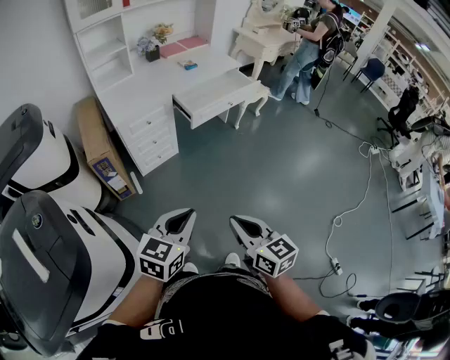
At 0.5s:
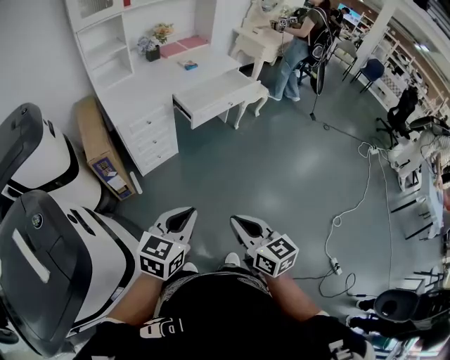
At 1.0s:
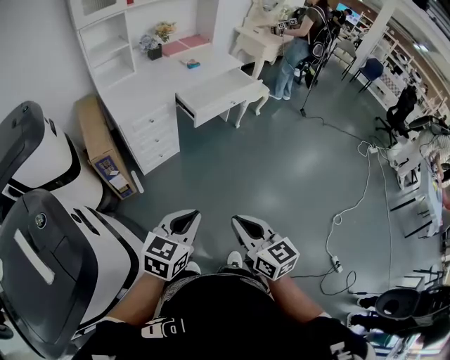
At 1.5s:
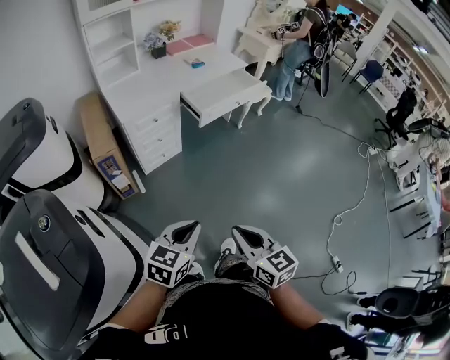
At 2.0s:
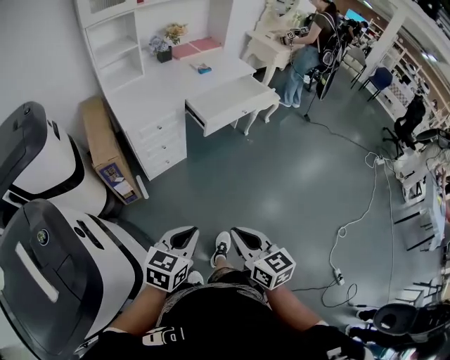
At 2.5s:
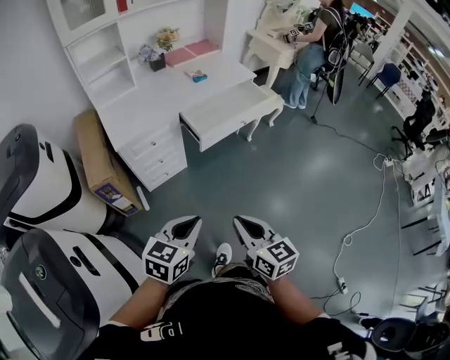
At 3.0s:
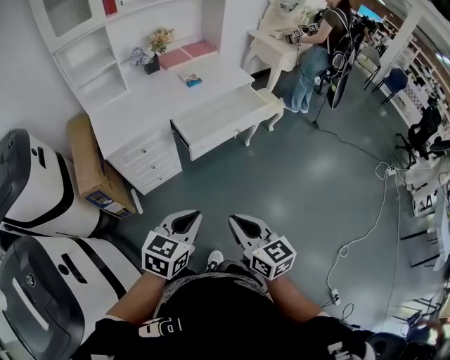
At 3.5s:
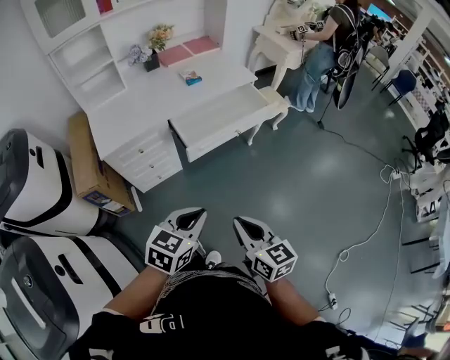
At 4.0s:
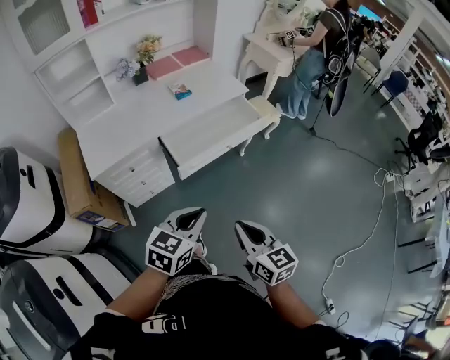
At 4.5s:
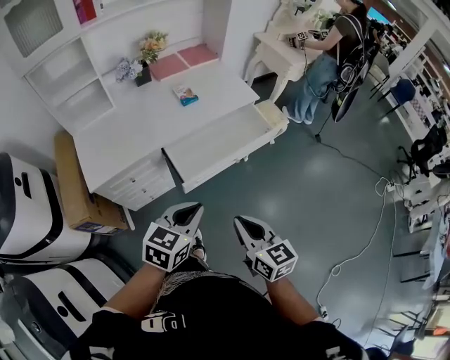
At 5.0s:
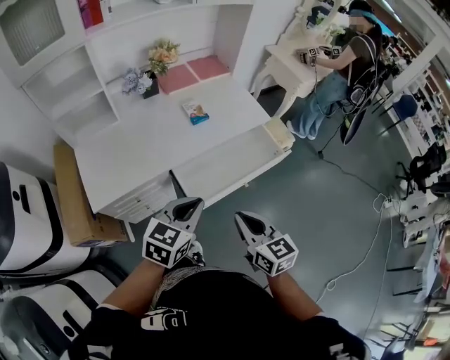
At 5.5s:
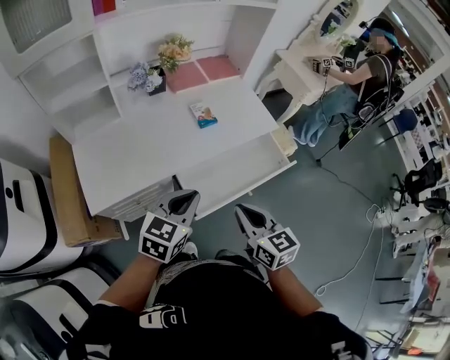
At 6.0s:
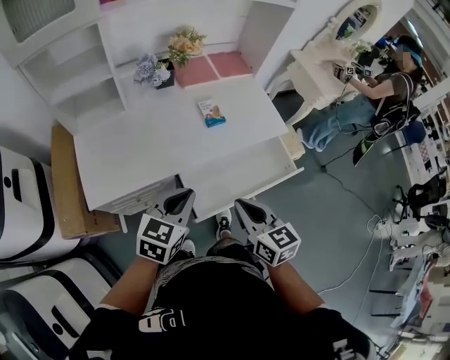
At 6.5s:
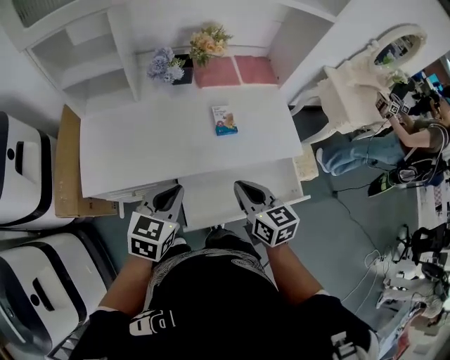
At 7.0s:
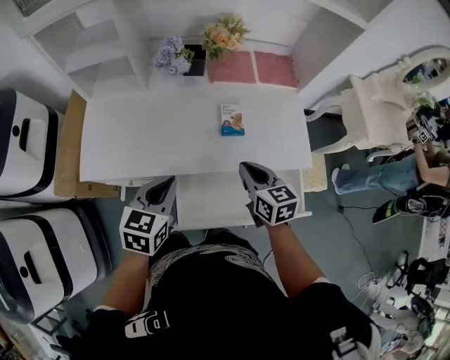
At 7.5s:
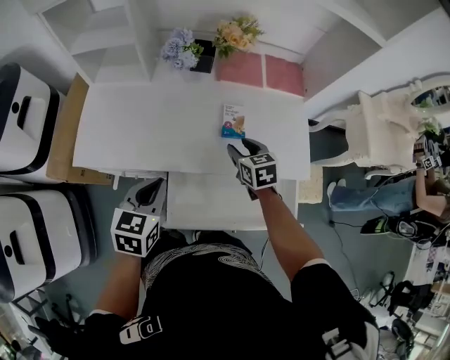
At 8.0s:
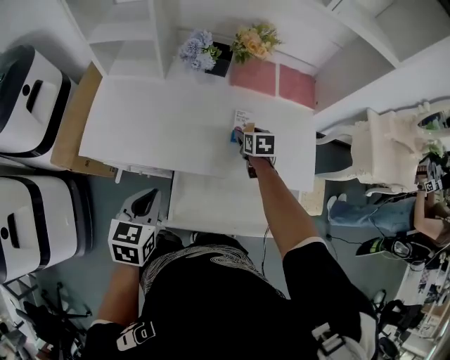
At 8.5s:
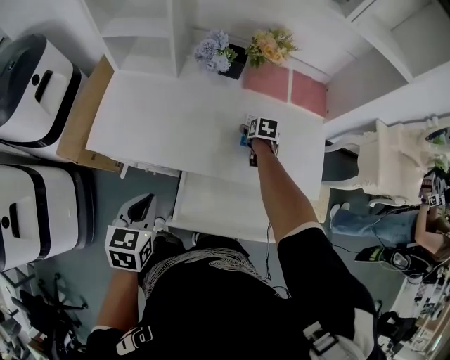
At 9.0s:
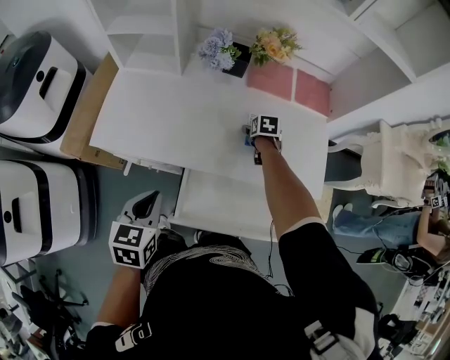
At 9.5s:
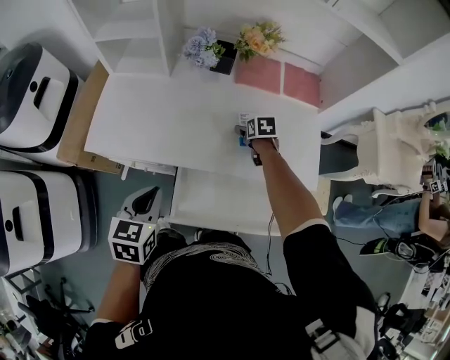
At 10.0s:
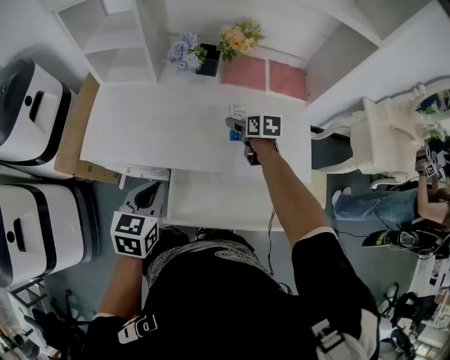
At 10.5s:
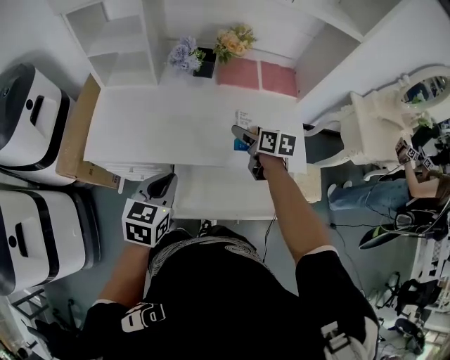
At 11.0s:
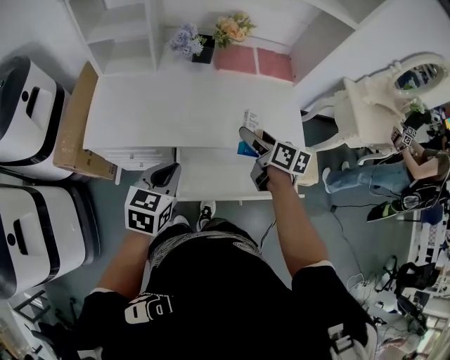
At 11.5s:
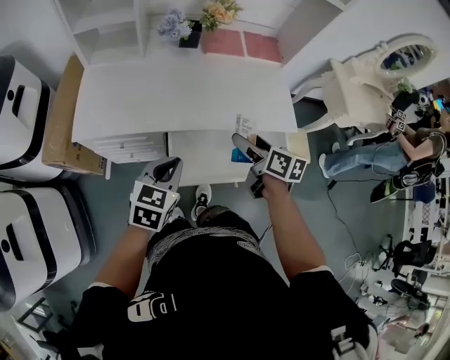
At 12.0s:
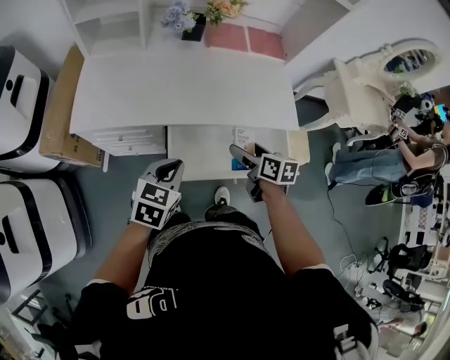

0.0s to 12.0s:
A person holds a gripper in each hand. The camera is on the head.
0.0s to 2.0s: The right gripper goes roughly 5 cm to the left, while the left gripper shifts roughly 10 cm downward and to the left.
2.0s to 4.0s: The two grippers go roughly 40 cm forward and to the right.
4.0s to 6.0s: The left gripper is displaced forward and to the left by some 35 cm, while the right gripper is displaced forward by about 35 cm.
6.0s to 8.0s: The right gripper ends up about 50 cm from where it was, turns by about 30 degrees, and opens up. The left gripper shifts approximately 5 cm downward, and changes its angle by approximately 50 degrees.
10.0s to 12.0s: The left gripper is displaced backward by some 10 cm, and turns by about 20 degrees. The right gripper shifts roughly 30 cm backward.

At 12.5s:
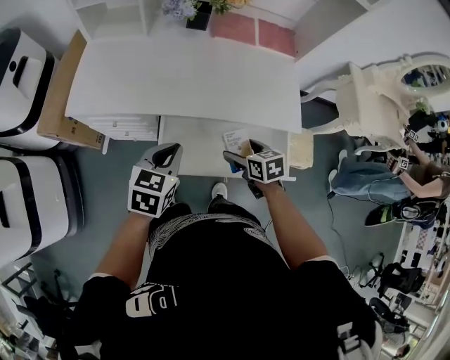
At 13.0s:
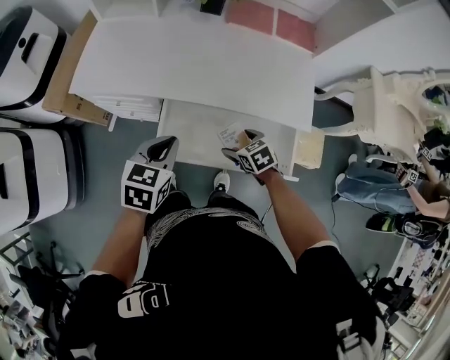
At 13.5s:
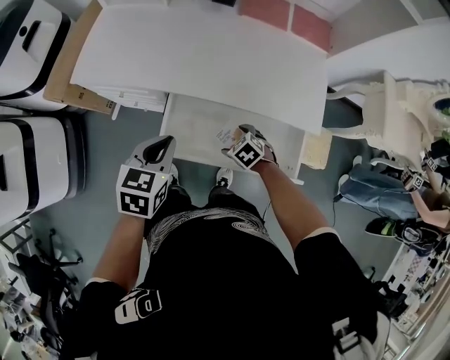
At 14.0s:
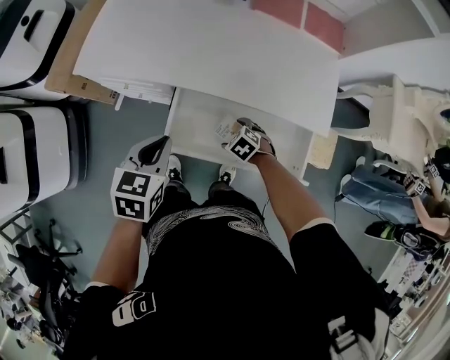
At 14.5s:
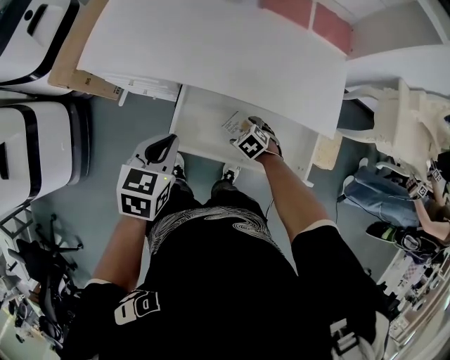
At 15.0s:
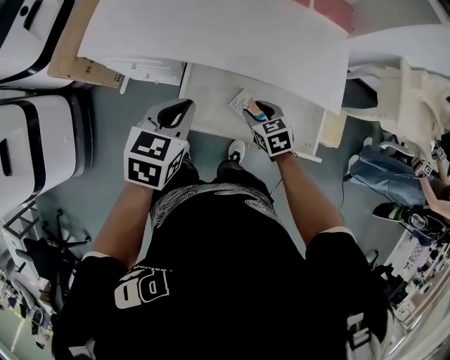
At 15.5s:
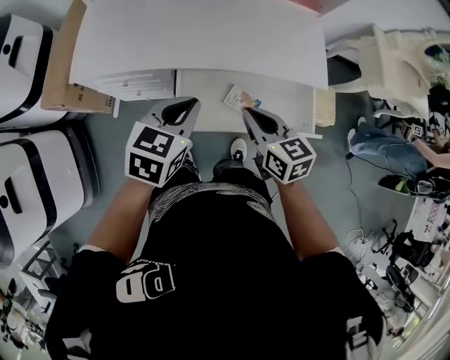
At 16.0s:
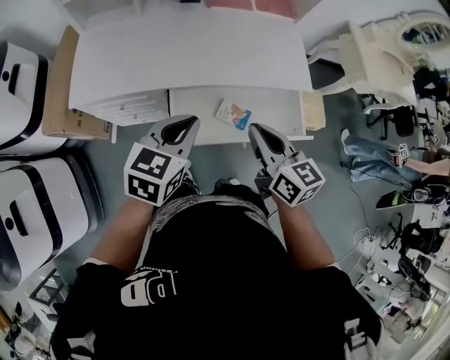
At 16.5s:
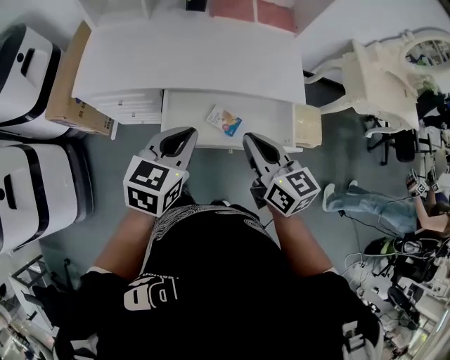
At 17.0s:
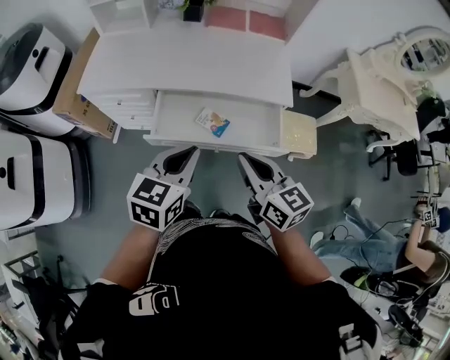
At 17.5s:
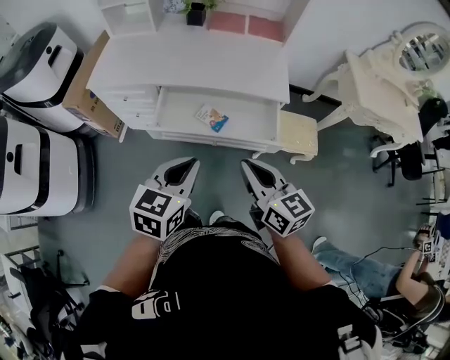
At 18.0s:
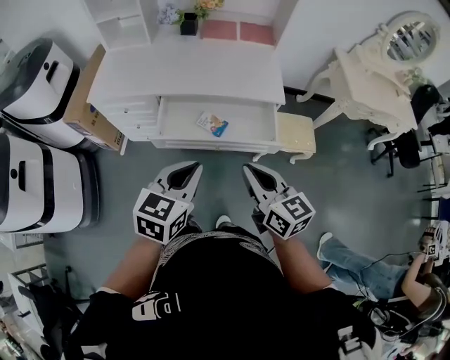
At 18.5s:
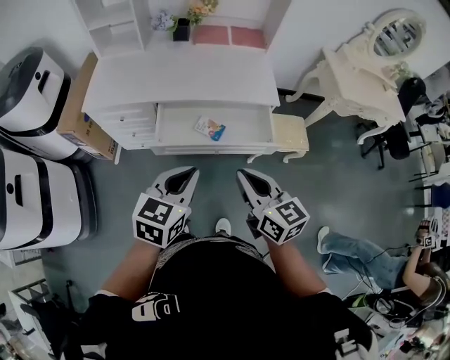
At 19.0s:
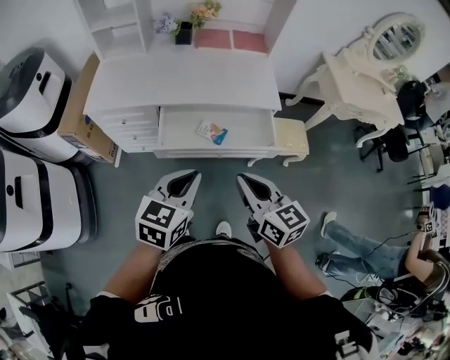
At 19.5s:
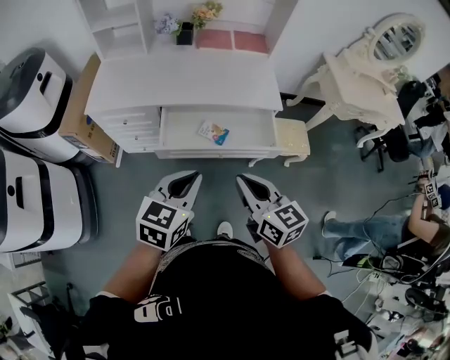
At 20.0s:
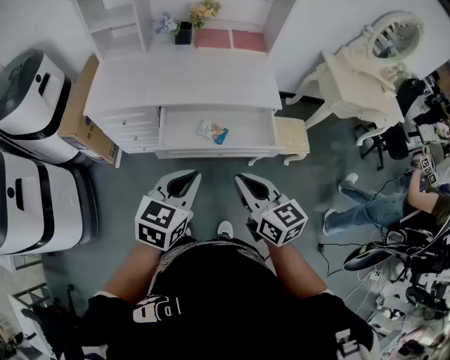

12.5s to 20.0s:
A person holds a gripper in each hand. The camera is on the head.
12.5s to 14.5s: The right gripper heads downward, covering roughly 20 cm, and rotates around the line of its fingers by about 40 degrees, counterclockwise from behind; the left gripper moves roughly 5 cm.
14.5s to 16.5s: The right gripper is displaced upward by about 35 cm, points its fingers about 60 degrees further upward, and closes; the left gripper moves upward, approximately 10 cm, and changes its angle by some 20 degrees.
16.5s to 18.0s: The two grippers go roughly 20 cm backward and to the right.
18.0s to 20.0s: Both grippers travel together to the left, roughly 5 cm.

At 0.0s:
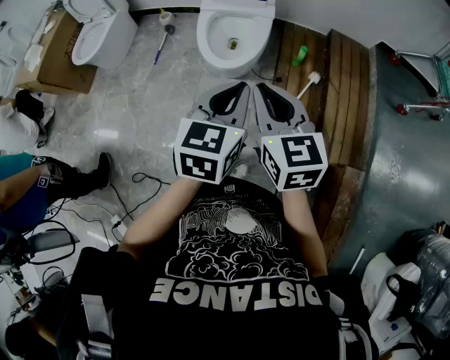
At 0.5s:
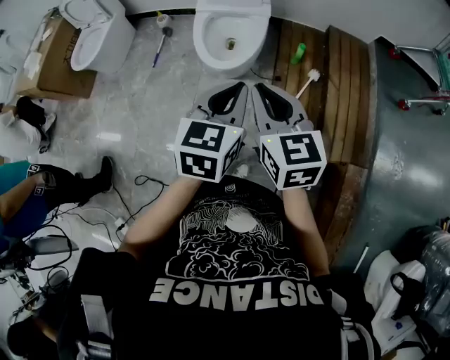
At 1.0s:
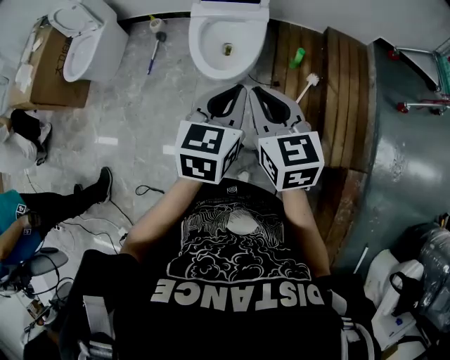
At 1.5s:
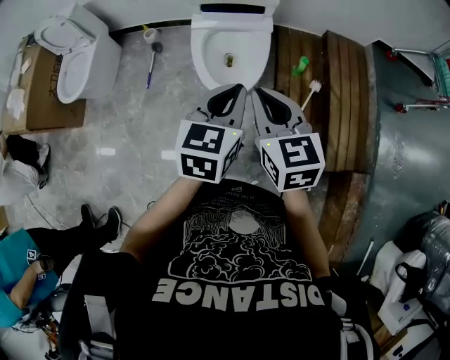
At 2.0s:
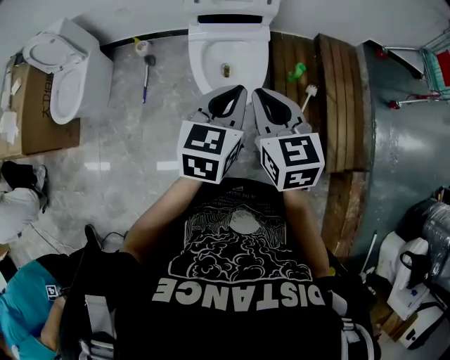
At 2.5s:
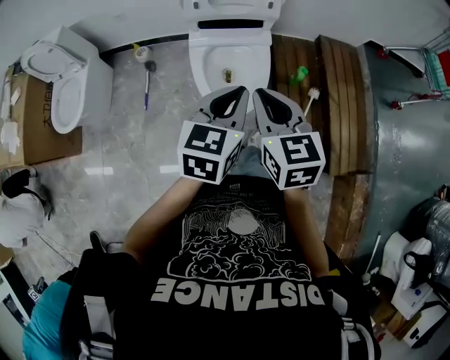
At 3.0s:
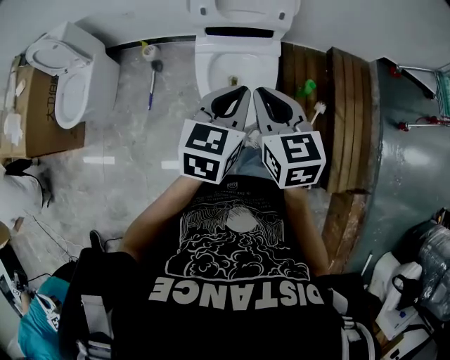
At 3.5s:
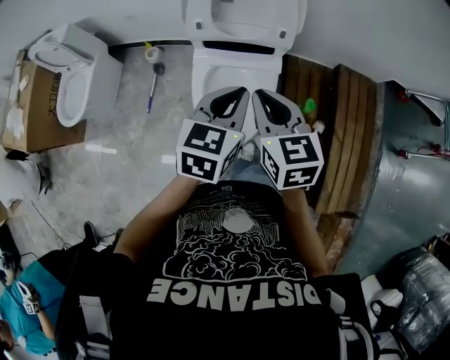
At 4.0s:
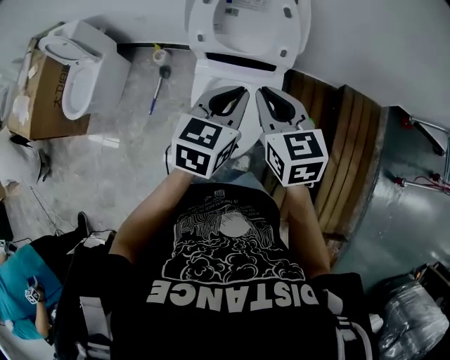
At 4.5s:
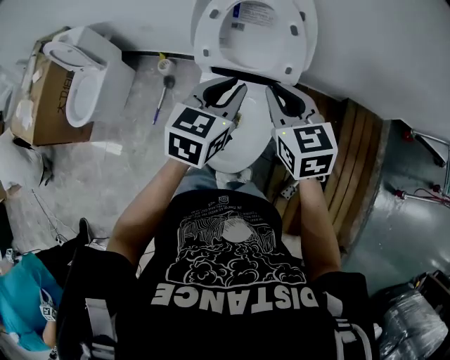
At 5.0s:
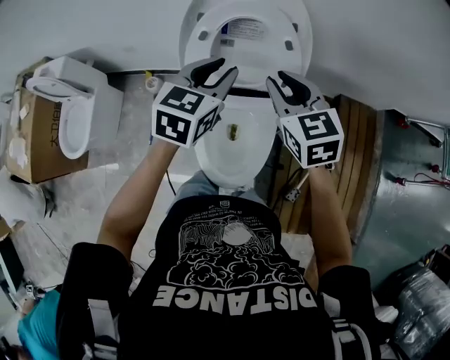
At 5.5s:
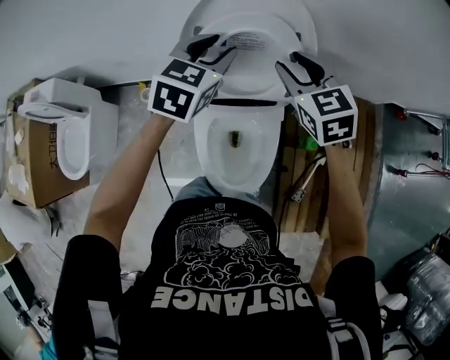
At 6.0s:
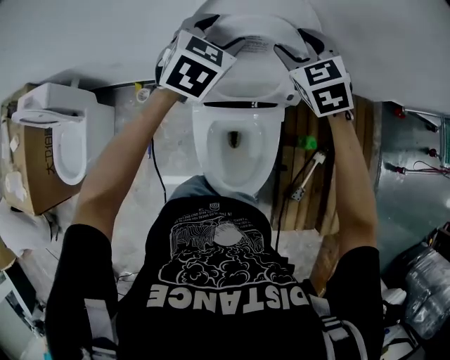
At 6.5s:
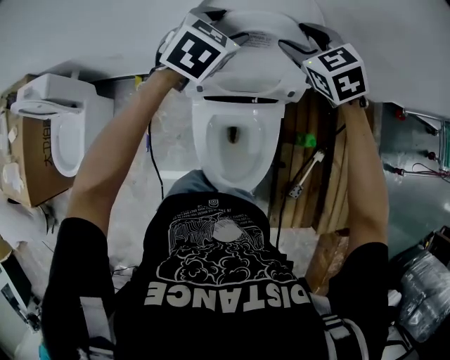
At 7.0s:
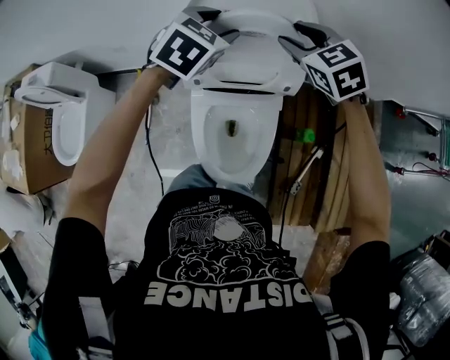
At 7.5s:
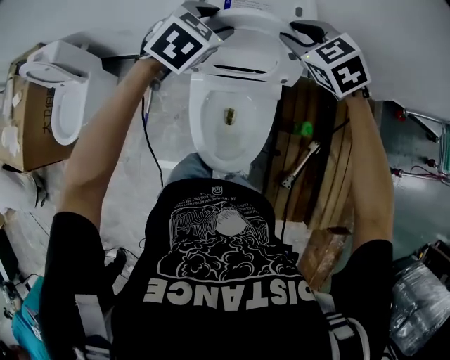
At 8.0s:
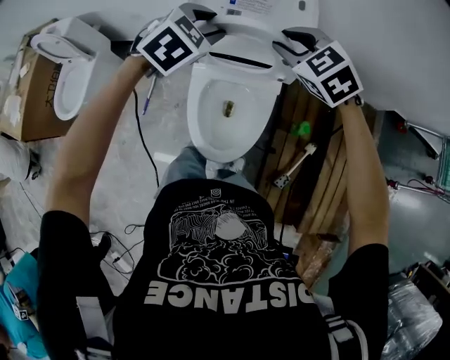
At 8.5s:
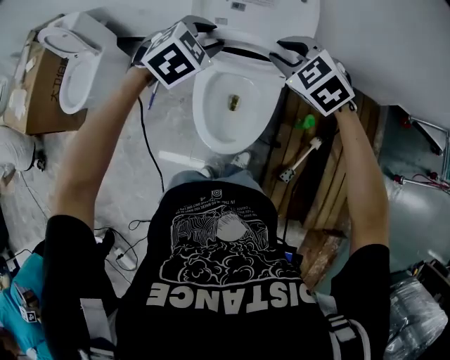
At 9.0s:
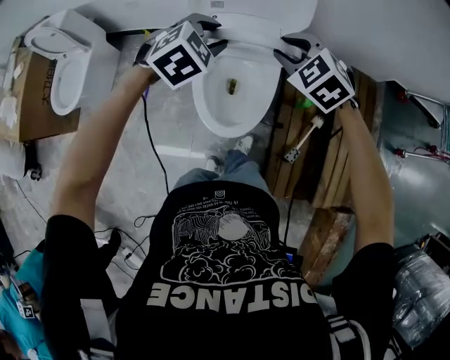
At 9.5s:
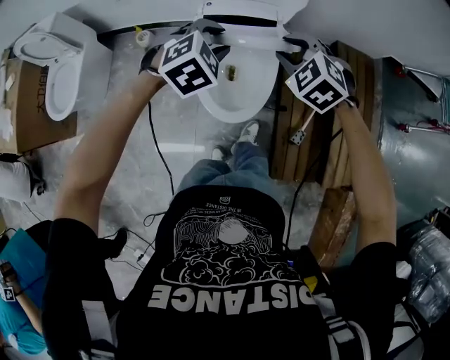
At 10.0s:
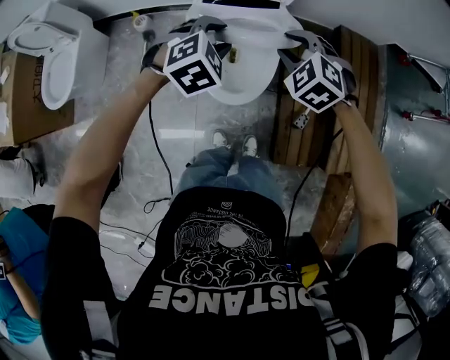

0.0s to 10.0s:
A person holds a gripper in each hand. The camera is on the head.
0.0s to 2.0s: The two grippers go approximately 25 cm forward and to the left.
2.0s to 4.0s: The grippers both shift forward by roughly 25 cm.
4.0s to 6.0s: The grippers both shift forward by some 30 cm. The left gripper swivels about 30 degrees, and opens its fingers. Meanwhile the right gripper swivels about 30 degrees, and opens up.
6.0s to 8.0s: The two grippers go some 15 cm backward. The right gripper turns by roughly 30 degrees, and closes up.
8.0s to 10.0s: Both grippers move backward and downward, roughly 25 cm. The right gripper turns by roughly 20 degrees.
